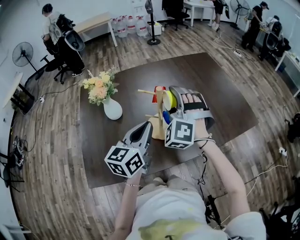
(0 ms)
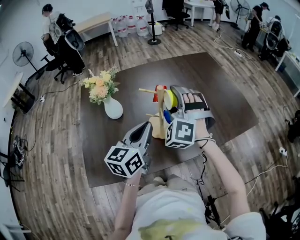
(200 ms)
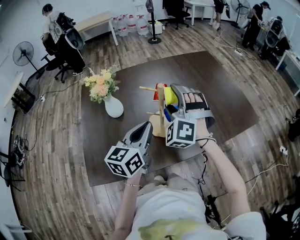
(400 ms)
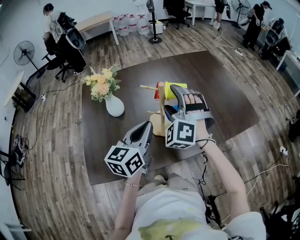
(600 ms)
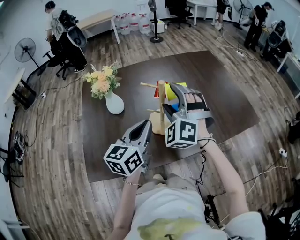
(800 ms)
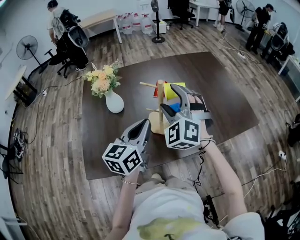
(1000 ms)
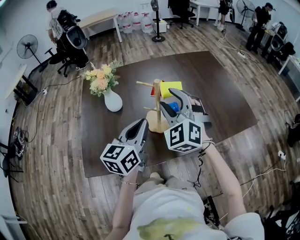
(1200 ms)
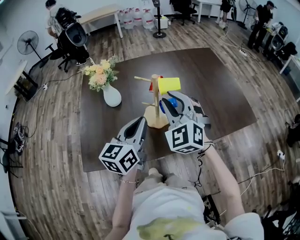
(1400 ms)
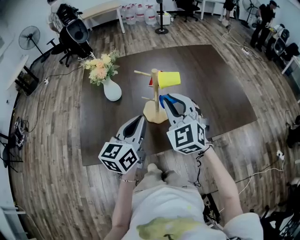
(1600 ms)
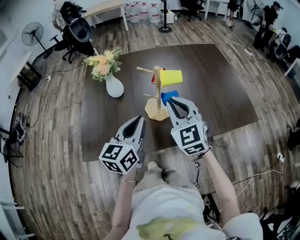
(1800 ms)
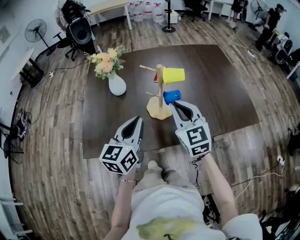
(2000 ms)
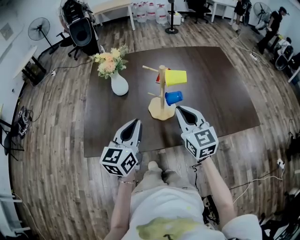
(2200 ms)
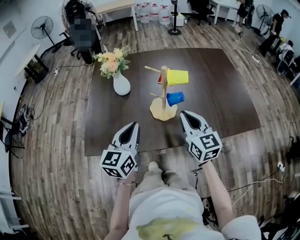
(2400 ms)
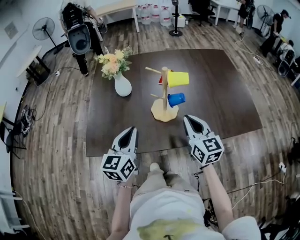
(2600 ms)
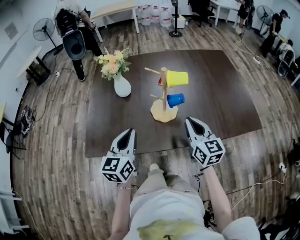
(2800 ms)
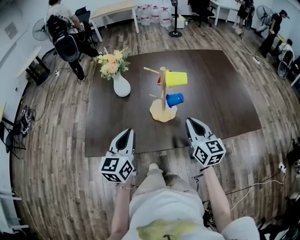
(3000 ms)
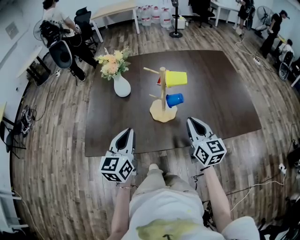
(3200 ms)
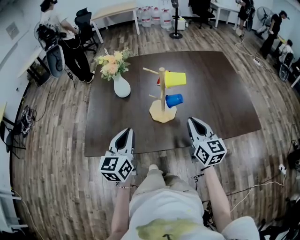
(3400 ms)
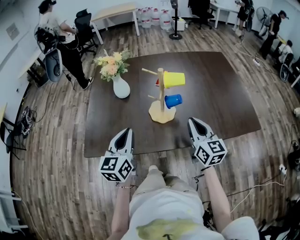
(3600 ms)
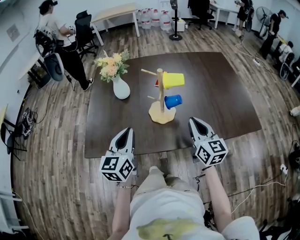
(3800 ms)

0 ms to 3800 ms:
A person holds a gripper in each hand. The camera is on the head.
0 ms to 1200 ms: The right gripper shifts approximately 5 cm backward, and turns by some 30 degrees.
1200 ms to 2600 ms: The left gripper goes approximately 10 cm backward and to the left. The right gripper is displaced downward, backward and to the right by roughly 15 cm, twists roughly 60 degrees clockwise, seen from behind, and closes up.
2600 ms to 3800 ms: The grippers make only small movements.

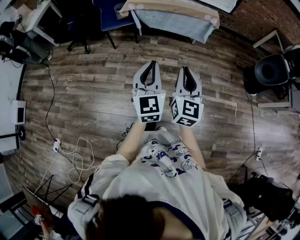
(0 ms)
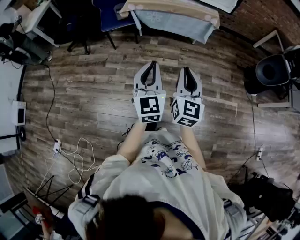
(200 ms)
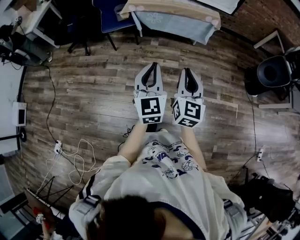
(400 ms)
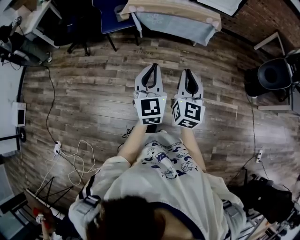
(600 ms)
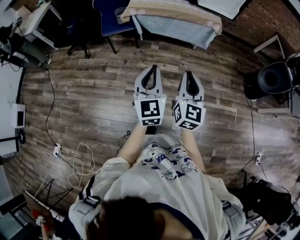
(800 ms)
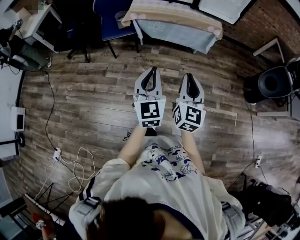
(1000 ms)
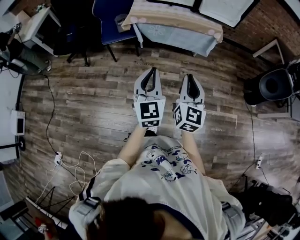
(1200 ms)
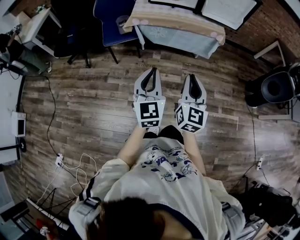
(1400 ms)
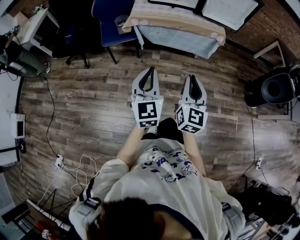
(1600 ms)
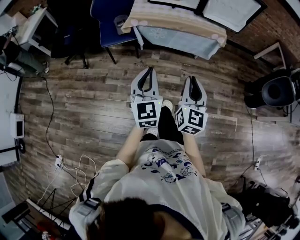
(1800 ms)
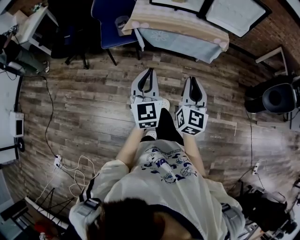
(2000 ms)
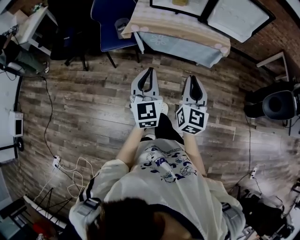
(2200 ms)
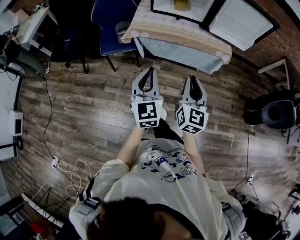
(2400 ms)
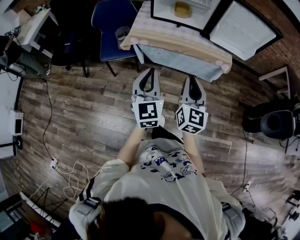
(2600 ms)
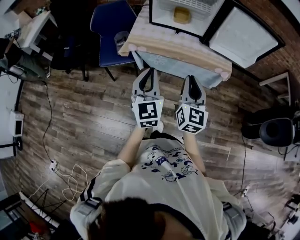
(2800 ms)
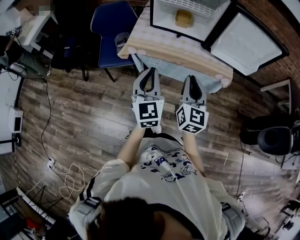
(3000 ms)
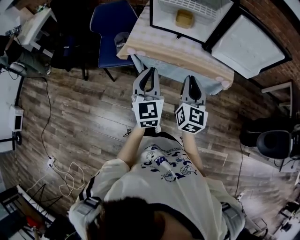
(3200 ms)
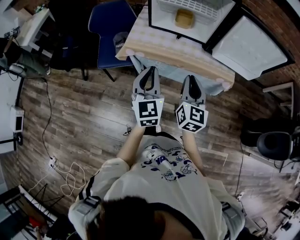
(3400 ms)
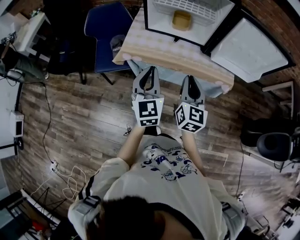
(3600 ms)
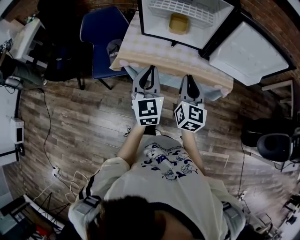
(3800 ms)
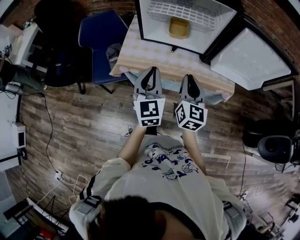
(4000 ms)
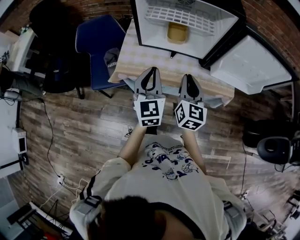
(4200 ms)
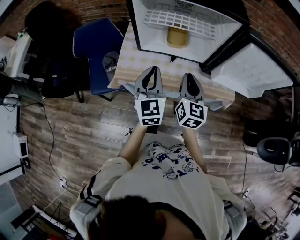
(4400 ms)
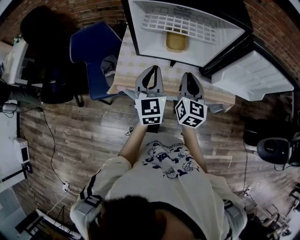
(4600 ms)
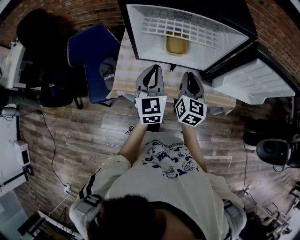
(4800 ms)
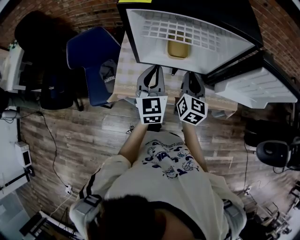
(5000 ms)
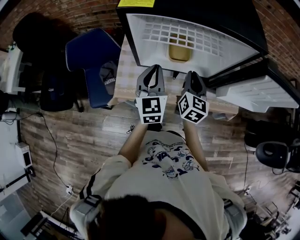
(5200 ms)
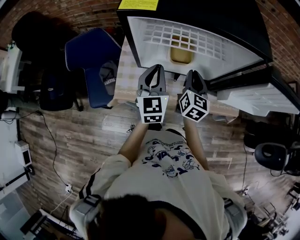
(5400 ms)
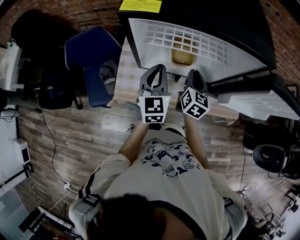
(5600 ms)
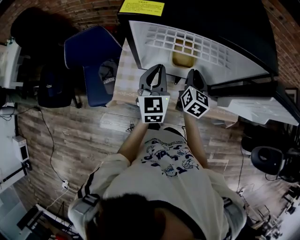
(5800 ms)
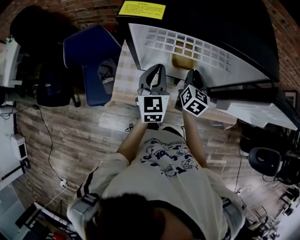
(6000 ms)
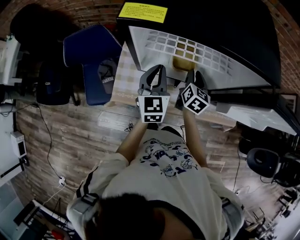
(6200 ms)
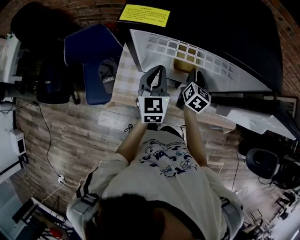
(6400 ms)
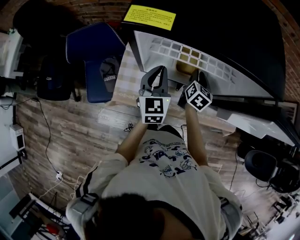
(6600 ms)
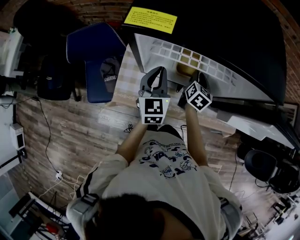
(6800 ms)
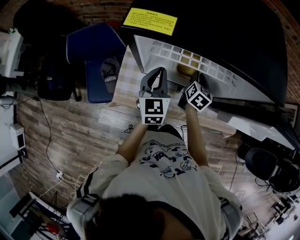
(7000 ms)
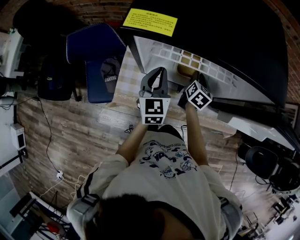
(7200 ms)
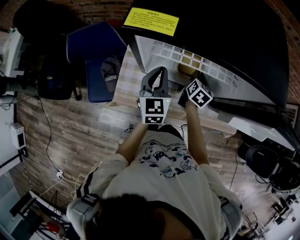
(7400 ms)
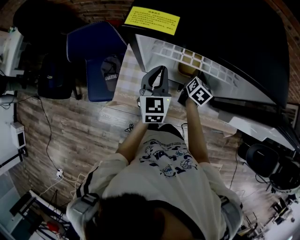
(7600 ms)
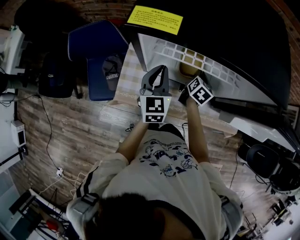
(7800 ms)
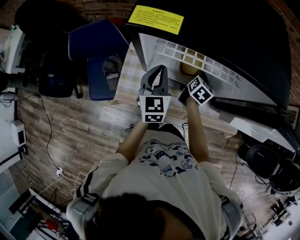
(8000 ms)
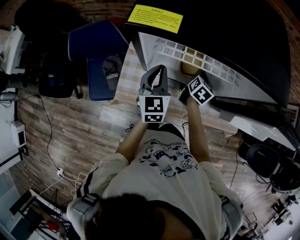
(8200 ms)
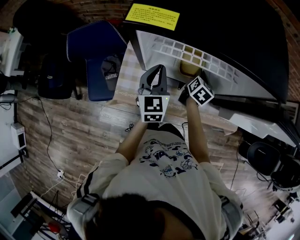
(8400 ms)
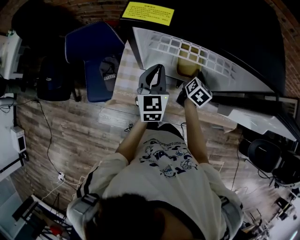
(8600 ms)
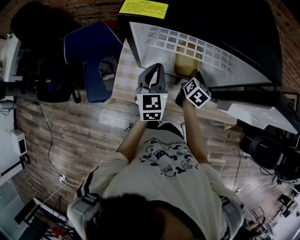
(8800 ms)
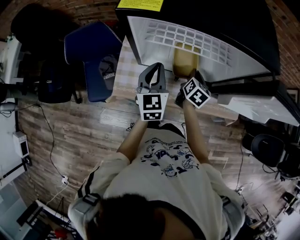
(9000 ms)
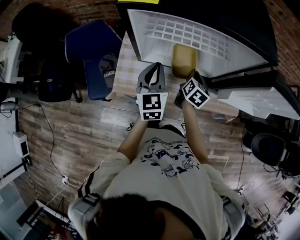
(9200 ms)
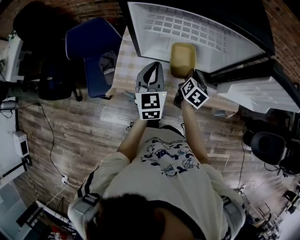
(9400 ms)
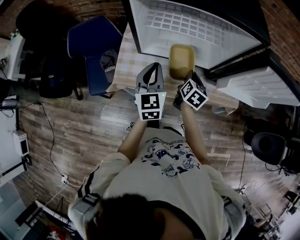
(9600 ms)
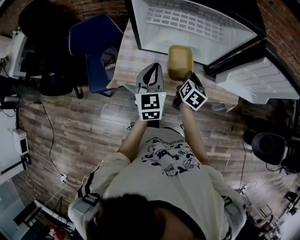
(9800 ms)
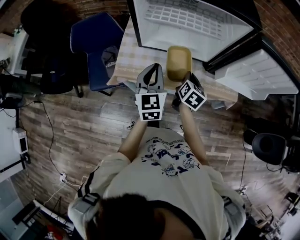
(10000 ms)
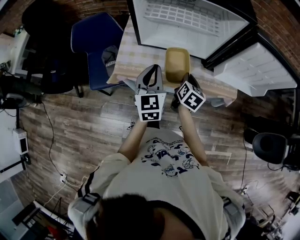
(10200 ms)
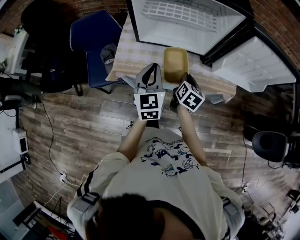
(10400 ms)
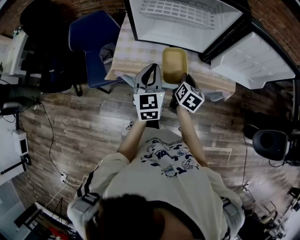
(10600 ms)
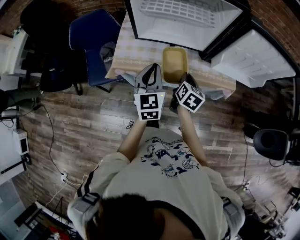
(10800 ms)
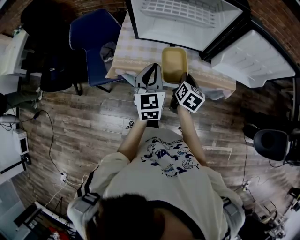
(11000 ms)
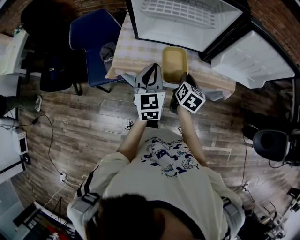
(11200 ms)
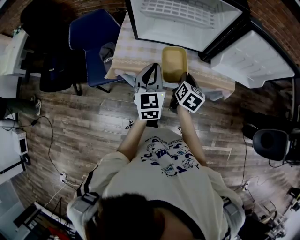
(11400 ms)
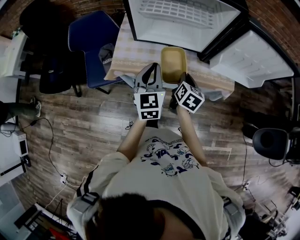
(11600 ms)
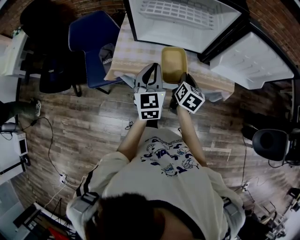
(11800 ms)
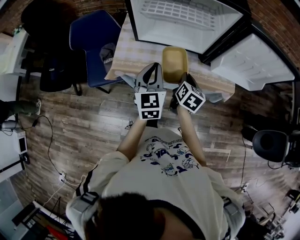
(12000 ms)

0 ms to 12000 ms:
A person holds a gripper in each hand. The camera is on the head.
0 ms to 1600 ms: The right gripper moves forward, roughly 15 cm. Meanwhile the left gripper travels forward and to the left by approximately 15 cm.
1600 ms to 3000 ms: The grippers both shift forward by roughly 35 cm.
3000 ms to 4400 ms: Both grippers travel together forward, about 25 cm.
4400 ms to 6000 ms: The right gripper heads forward and downward, covering roughly 25 cm. The left gripper moves forward, roughly 20 cm.
6000 ms to 7600 ms: The right gripper goes roughly 10 cm downward and forward.
7600 ms to 9000 ms: The right gripper goes approximately 5 cm backward.
9000 ms to 10400 ms: The two grippers go roughly 20 cm backward.
10400 ms to 12000 ms: The grippers stay close to where they were, moving slightly.

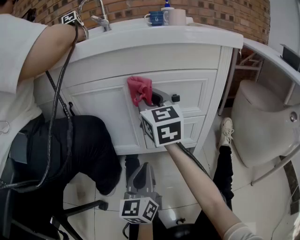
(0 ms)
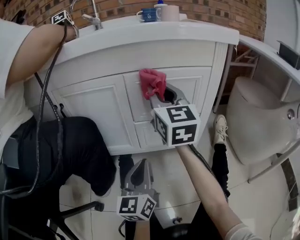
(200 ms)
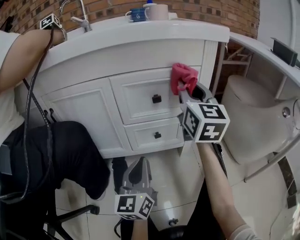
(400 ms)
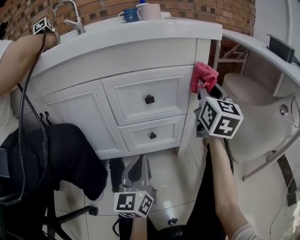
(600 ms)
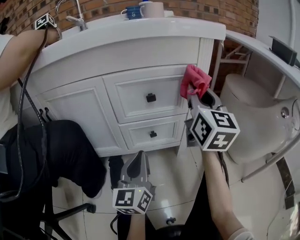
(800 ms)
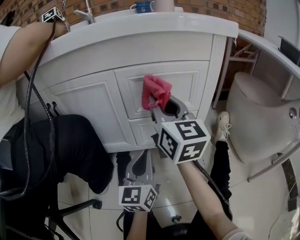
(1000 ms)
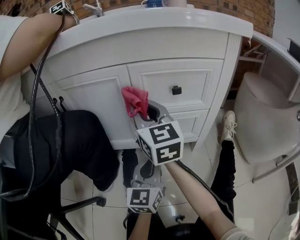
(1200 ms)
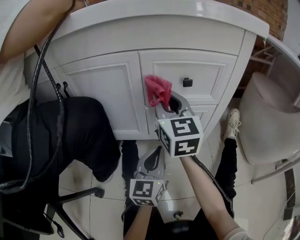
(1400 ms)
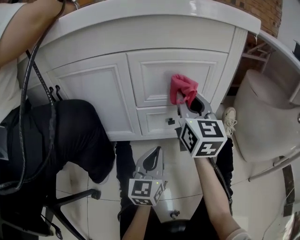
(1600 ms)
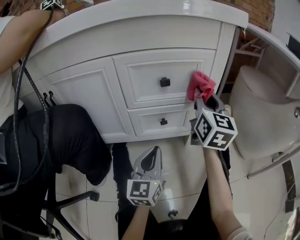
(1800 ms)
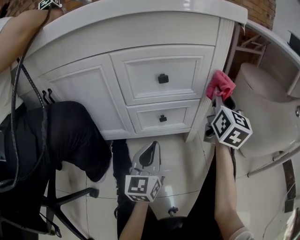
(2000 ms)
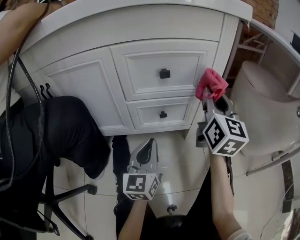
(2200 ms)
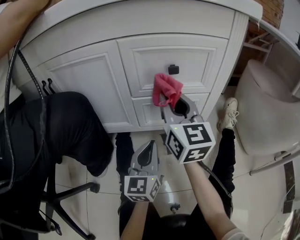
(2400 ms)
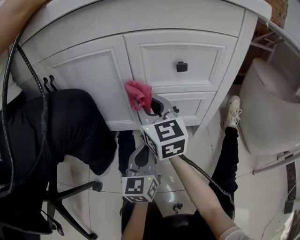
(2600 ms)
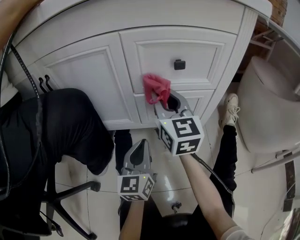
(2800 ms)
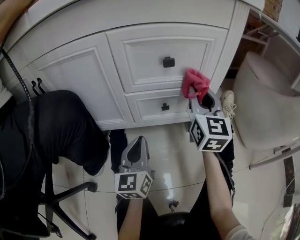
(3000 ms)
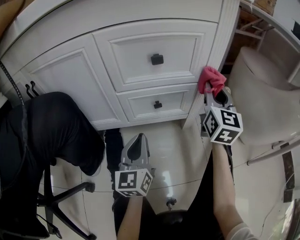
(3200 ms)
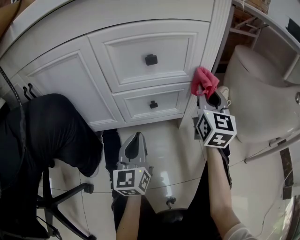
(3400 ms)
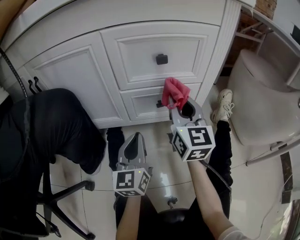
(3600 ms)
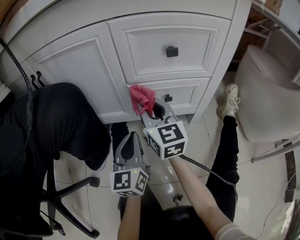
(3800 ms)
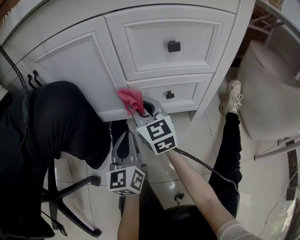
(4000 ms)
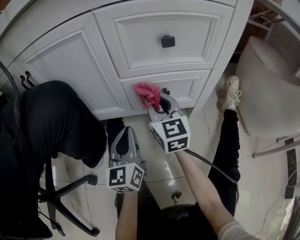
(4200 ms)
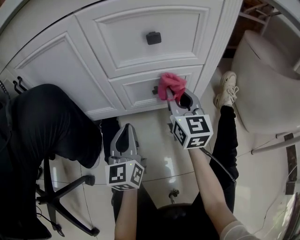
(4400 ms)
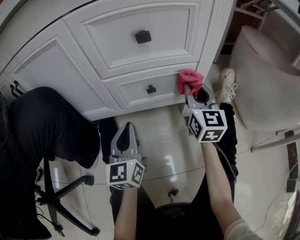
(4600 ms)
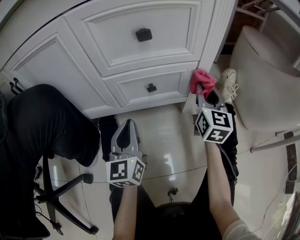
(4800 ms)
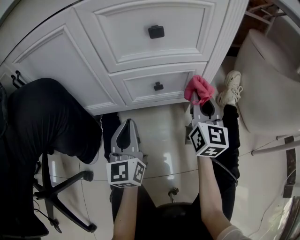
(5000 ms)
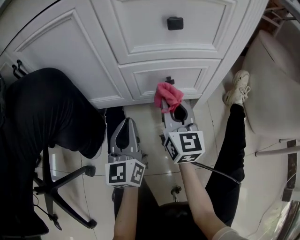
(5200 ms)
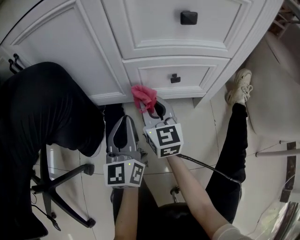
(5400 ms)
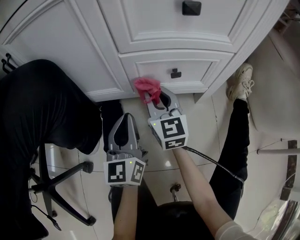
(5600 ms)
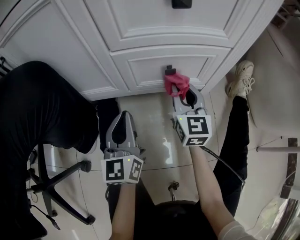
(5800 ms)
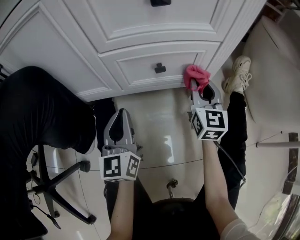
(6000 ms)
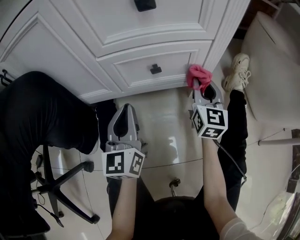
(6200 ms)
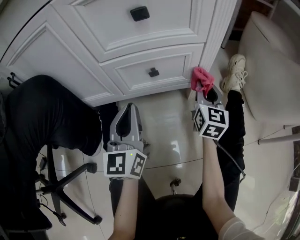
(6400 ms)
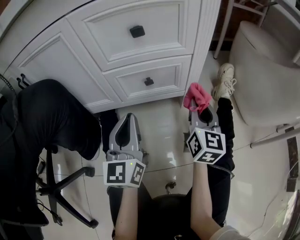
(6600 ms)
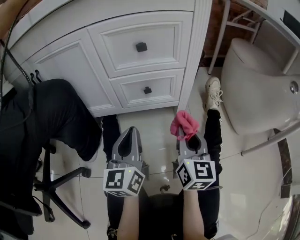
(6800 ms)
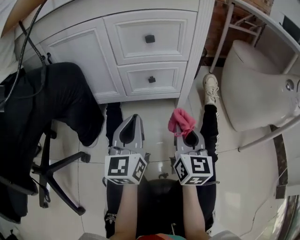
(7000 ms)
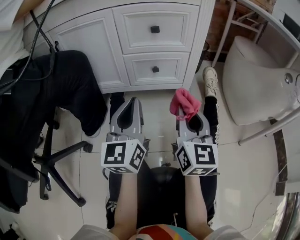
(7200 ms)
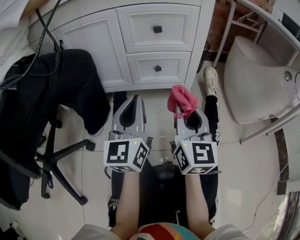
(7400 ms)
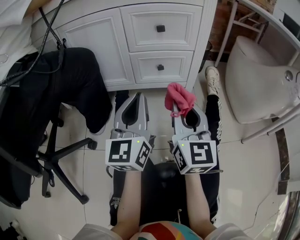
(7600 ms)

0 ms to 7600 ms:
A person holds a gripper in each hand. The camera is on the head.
0 ms to 1600 ms: The right gripper goes left and right, approximately 30 cm each way, reversing 2 times; the left gripper is displaced downward, forward and to the right by some 10 cm.
1600 ms to 3000 ms: The right gripper moves left and right over some 30 cm, changing direction 2 times.
3000 ms to 4600 ms: The right gripper moves left and right over about 30 cm, changing direction 2 times. The left gripper reaches some 5 cm to the left, then returns.
4600 ms to 6000 ms: The right gripper moves left and right over some 30 cm, changing direction 2 times.
6000 ms to 7600 ms: The right gripper shifts approximately 35 cm backward and upward, while the left gripper shifts roughly 25 cm upward and backward.
